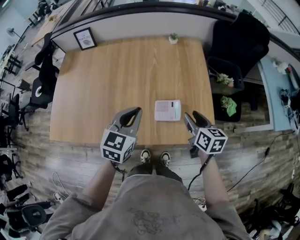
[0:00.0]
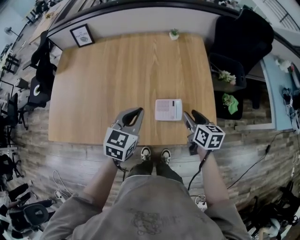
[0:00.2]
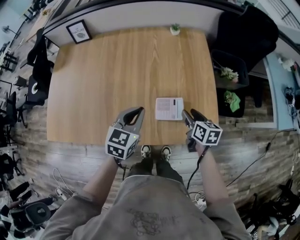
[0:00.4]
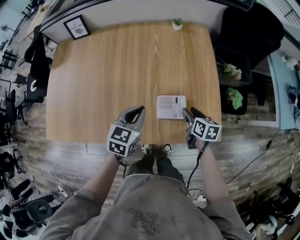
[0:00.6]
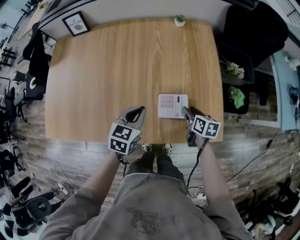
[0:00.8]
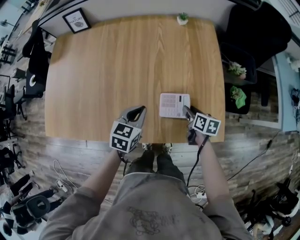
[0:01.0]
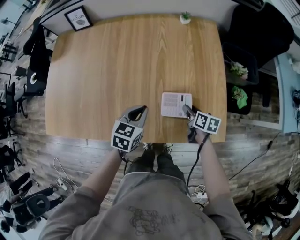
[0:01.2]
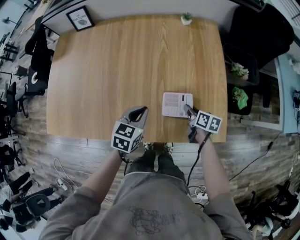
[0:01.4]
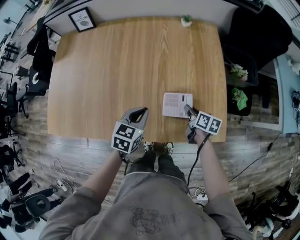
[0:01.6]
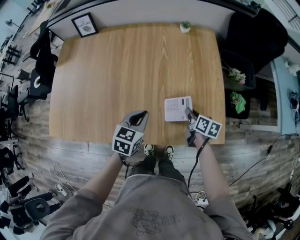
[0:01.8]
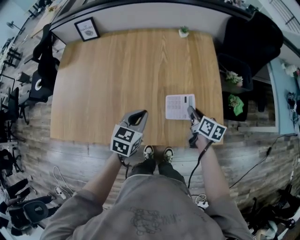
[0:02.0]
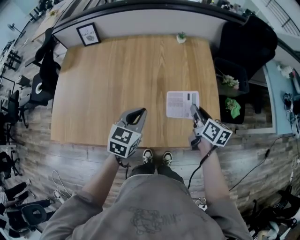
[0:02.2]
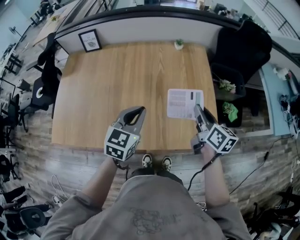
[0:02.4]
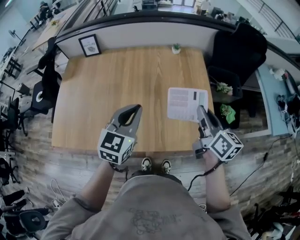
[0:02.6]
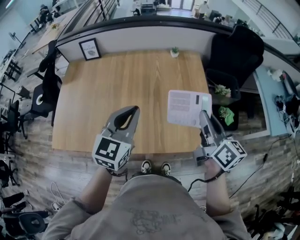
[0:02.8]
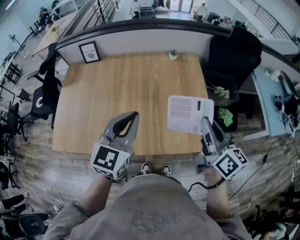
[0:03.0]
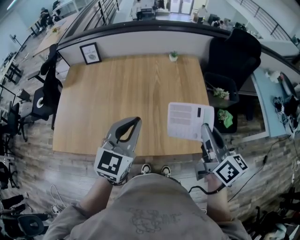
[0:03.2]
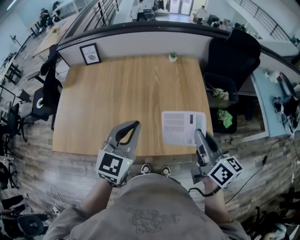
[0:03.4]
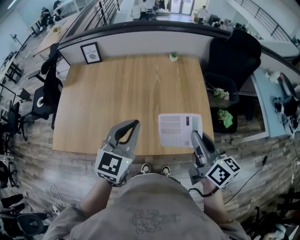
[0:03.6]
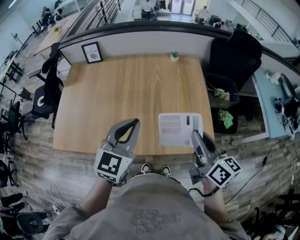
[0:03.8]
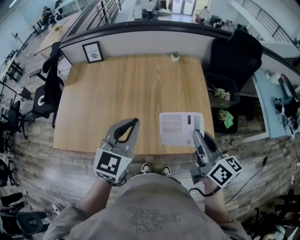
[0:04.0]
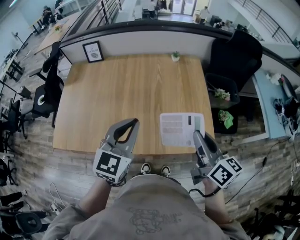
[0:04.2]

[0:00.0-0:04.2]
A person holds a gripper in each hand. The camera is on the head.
0:00.0 to 0:01.4: The grippers both shift downward by about 20 cm. The right gripper swivels roughly 20 degrees, and closes.
0:01.4 to 0:02.8: The grippers both shift upward by roughly 30 cm. The right gripper angles its fingers upward, by approximately 30 degrees; the left gripper rotates about 30 degrees.
0:02.8 to 0:04.2: The right gripper travels backward by some 5 cm.

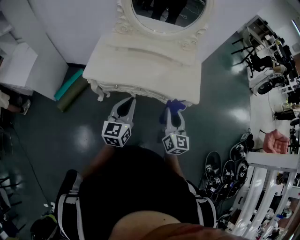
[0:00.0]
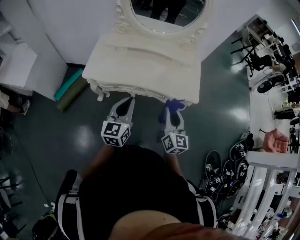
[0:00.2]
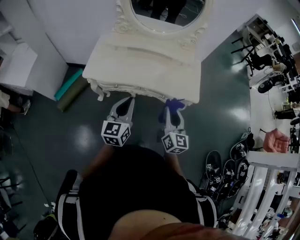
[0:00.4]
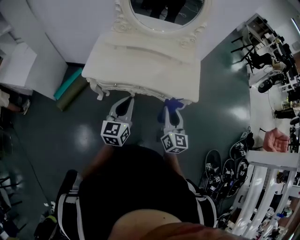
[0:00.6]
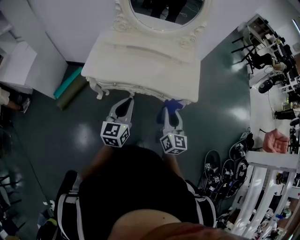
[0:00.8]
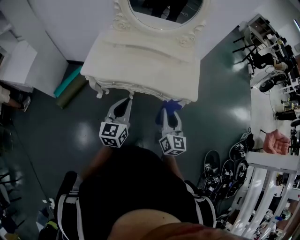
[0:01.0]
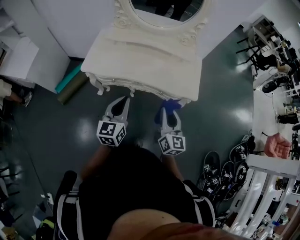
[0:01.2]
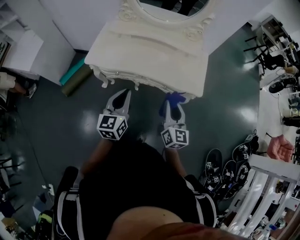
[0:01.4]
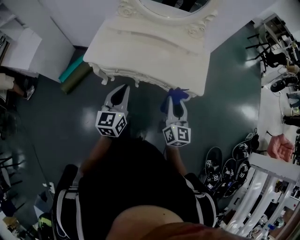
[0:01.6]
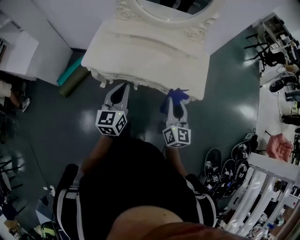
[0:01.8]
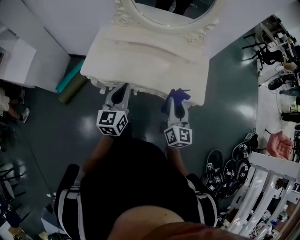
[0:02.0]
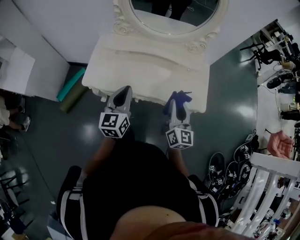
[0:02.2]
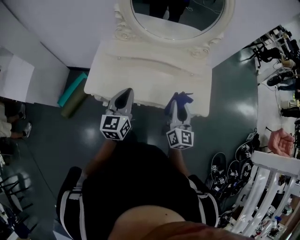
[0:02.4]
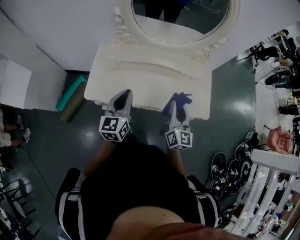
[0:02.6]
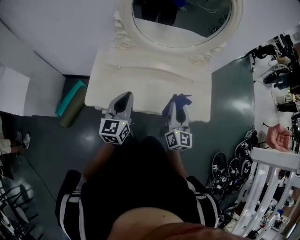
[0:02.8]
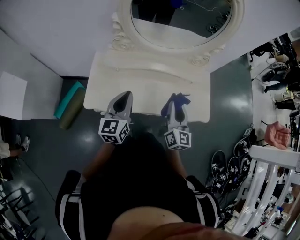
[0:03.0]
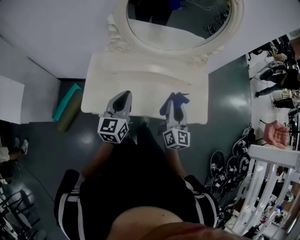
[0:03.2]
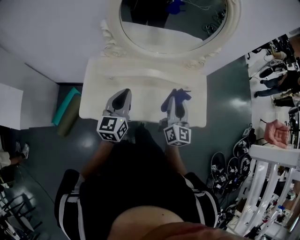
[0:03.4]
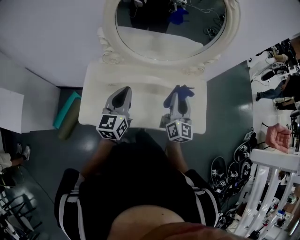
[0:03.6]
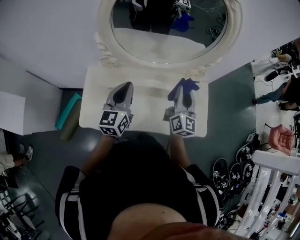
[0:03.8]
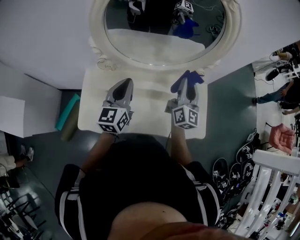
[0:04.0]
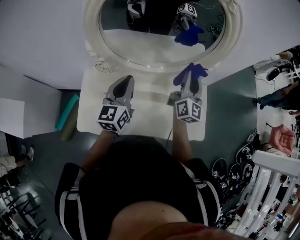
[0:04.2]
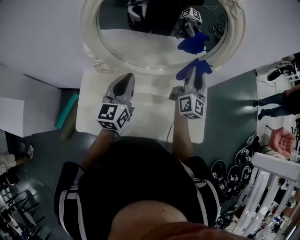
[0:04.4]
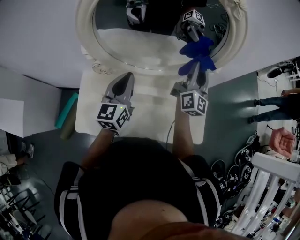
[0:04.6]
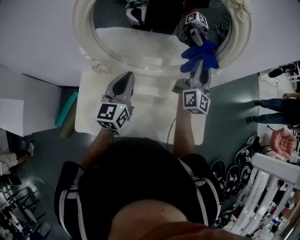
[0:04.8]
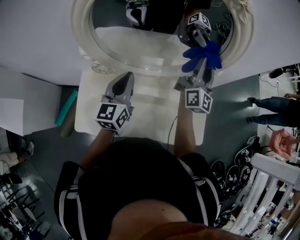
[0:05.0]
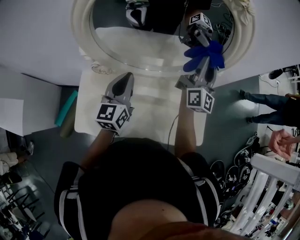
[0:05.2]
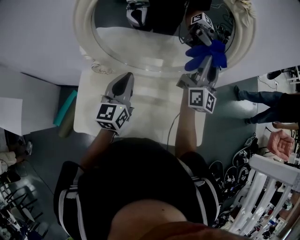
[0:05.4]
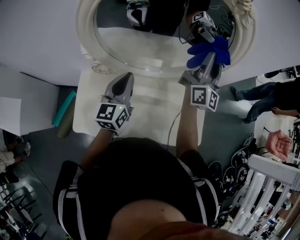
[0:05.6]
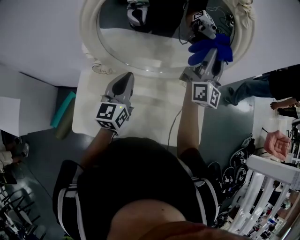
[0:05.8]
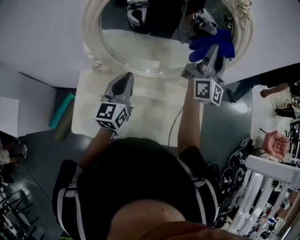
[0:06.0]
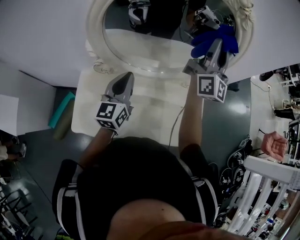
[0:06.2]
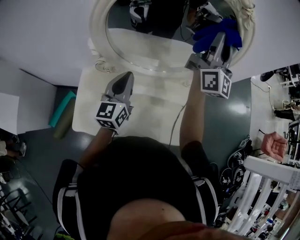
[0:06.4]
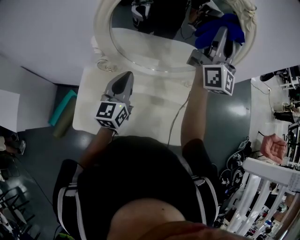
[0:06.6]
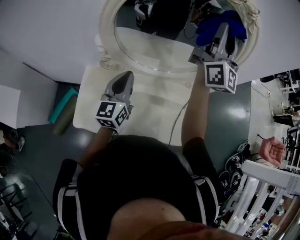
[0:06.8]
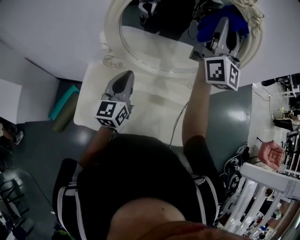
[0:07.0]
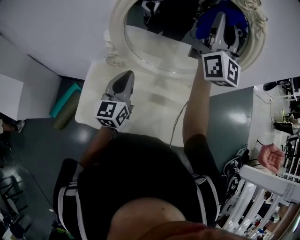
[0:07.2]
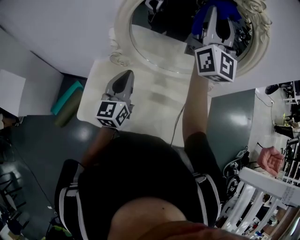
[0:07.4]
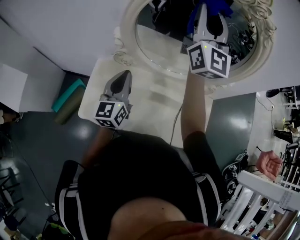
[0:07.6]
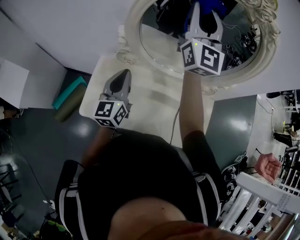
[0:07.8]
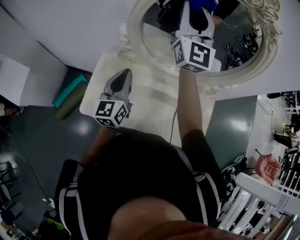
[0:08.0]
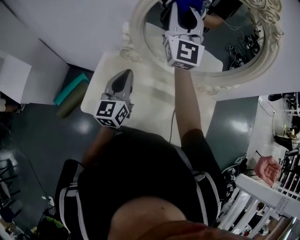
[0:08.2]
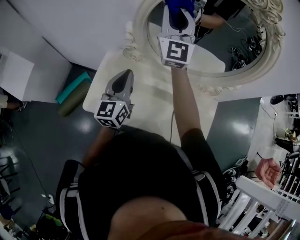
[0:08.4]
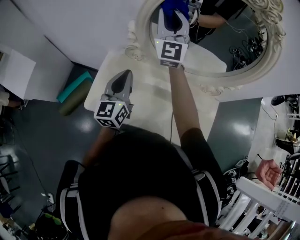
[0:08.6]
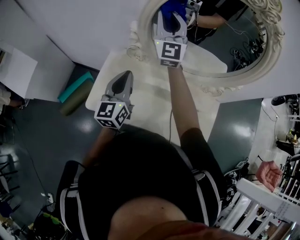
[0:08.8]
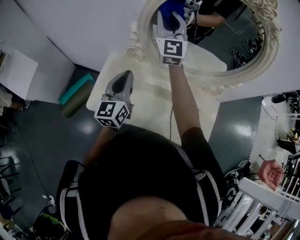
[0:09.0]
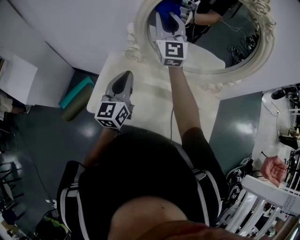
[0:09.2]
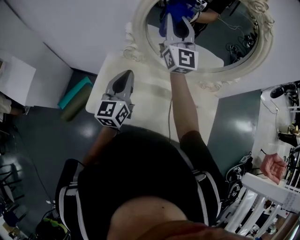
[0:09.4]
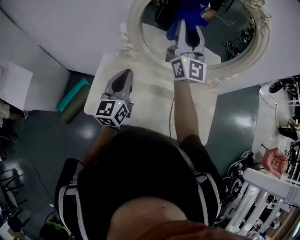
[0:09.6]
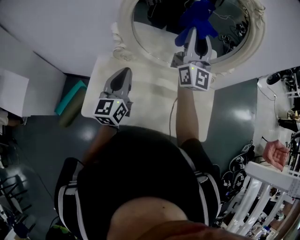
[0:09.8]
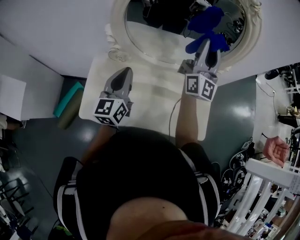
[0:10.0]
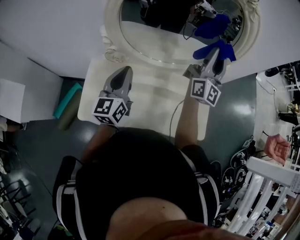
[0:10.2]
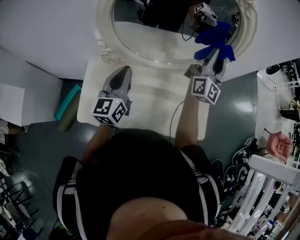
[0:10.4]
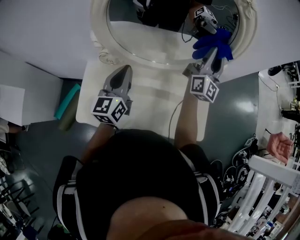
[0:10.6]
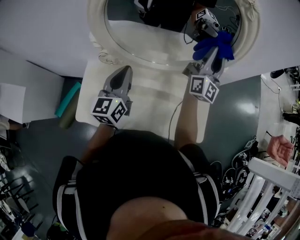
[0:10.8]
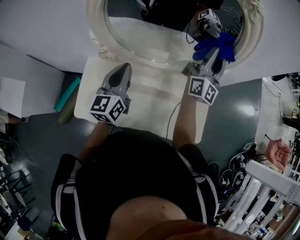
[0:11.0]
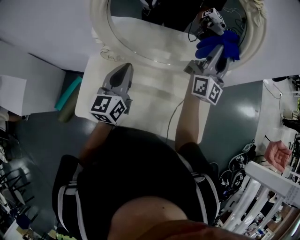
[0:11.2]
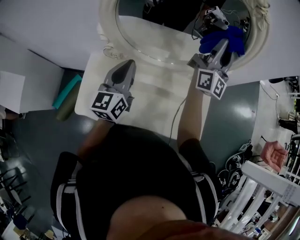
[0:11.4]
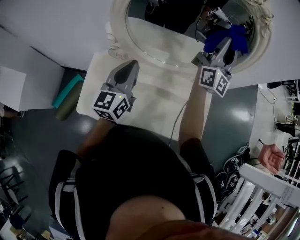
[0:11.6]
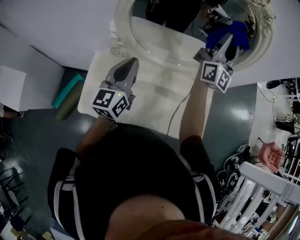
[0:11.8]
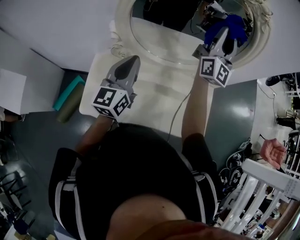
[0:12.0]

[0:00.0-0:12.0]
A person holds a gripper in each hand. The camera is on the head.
0:00.0 to 0:01.6: There are only small adjustments of the grippers.
0:01.6 to 0:03.0: Both grippers move forward and to the left, some 25 cm.
0:03.0 to 0:04.4: The two grippers go some 30 cm forward.
0:04.4 to 0:06.0: The right gripper goes roughly 15 cm upward.
0:06.0 to 0:07.6: The left gripper moves to the left and backward, some 10 cm. Meanwhile the right gripper heads to the left and upward, covering roughly 25 cm, and rotates some 30 degrees.
0:07.6 to 0:09.0: The right gripper moves to the left and downward, about 20 cm. The left gripper changes place by approximately 5 cm.
0:09.0 to 0:10.4: The right gripper changes place by roughly 35 cm, and changes its angle by approximately 40 degrees, while the left gripper moves roughly 10 cm.
0:10.4 to 0:12.0: The left gripper ends up some 5 cm from where it was. The right gripper goes approximately 10 cm upward and to the left.

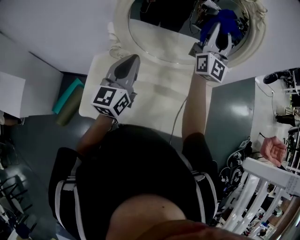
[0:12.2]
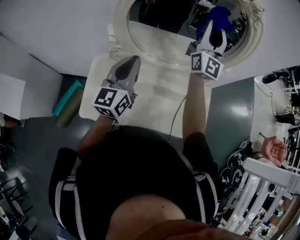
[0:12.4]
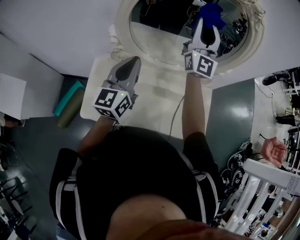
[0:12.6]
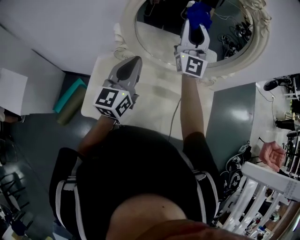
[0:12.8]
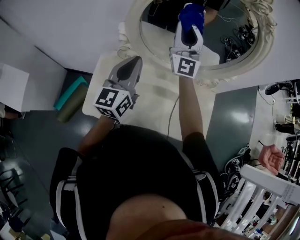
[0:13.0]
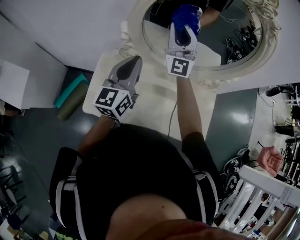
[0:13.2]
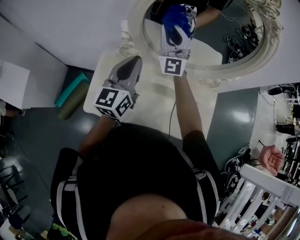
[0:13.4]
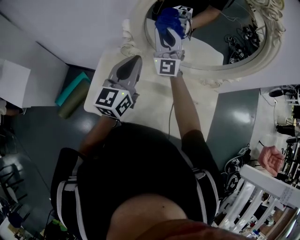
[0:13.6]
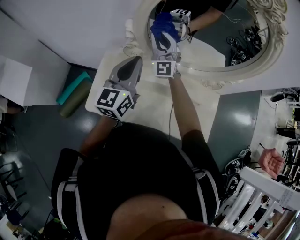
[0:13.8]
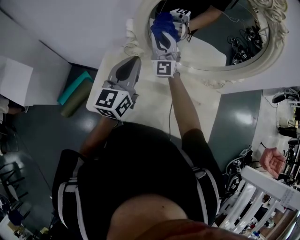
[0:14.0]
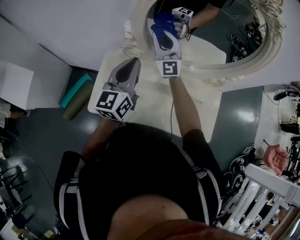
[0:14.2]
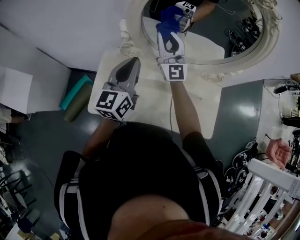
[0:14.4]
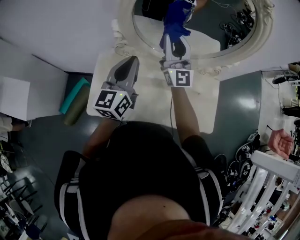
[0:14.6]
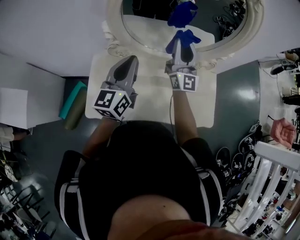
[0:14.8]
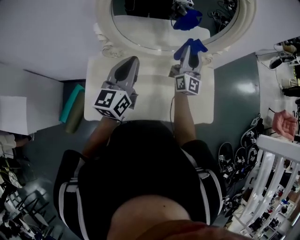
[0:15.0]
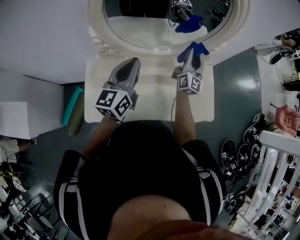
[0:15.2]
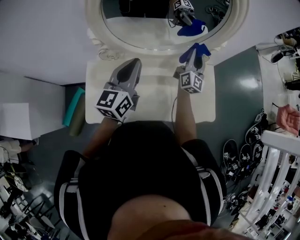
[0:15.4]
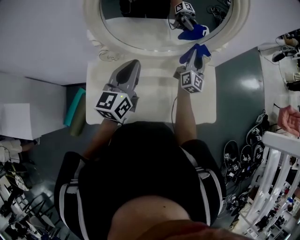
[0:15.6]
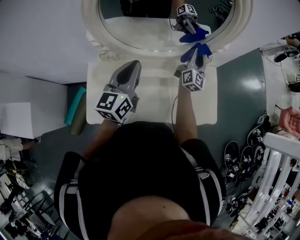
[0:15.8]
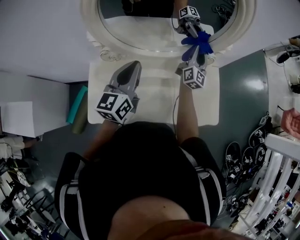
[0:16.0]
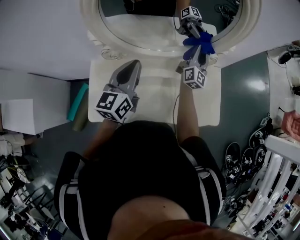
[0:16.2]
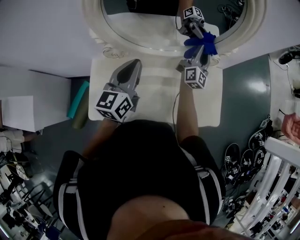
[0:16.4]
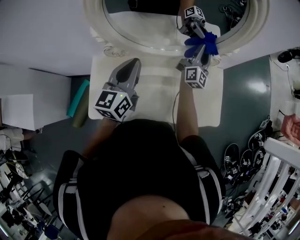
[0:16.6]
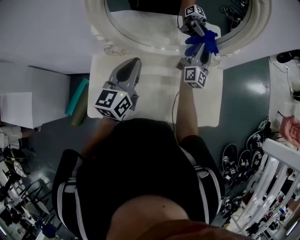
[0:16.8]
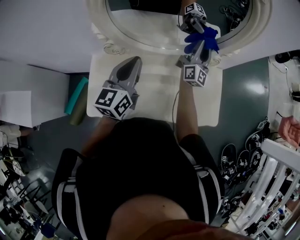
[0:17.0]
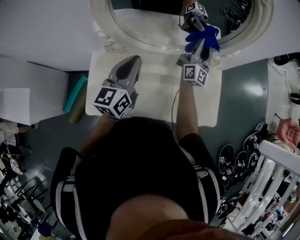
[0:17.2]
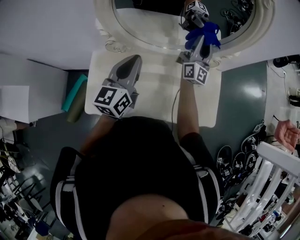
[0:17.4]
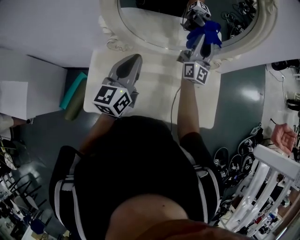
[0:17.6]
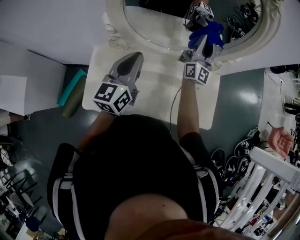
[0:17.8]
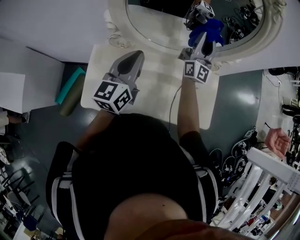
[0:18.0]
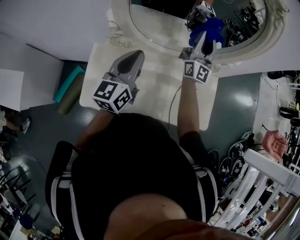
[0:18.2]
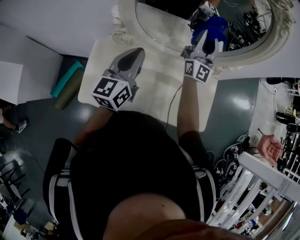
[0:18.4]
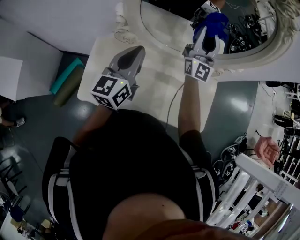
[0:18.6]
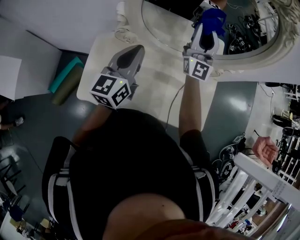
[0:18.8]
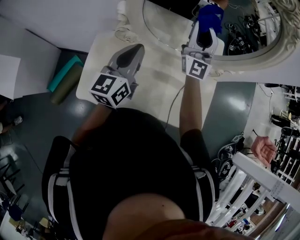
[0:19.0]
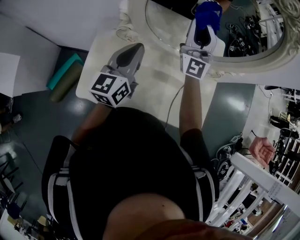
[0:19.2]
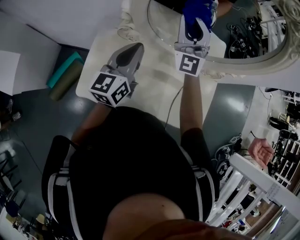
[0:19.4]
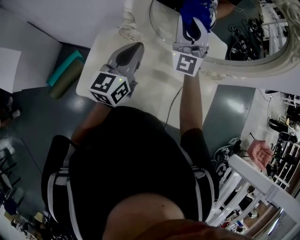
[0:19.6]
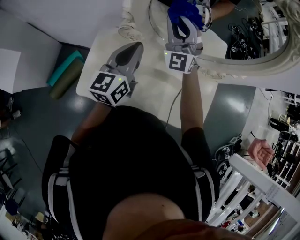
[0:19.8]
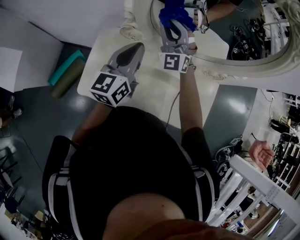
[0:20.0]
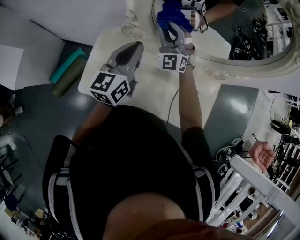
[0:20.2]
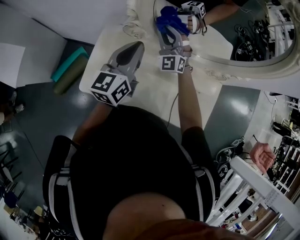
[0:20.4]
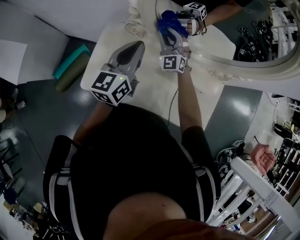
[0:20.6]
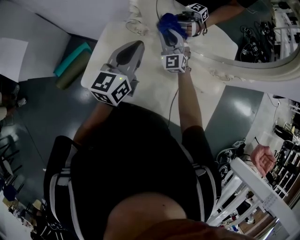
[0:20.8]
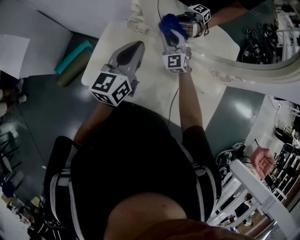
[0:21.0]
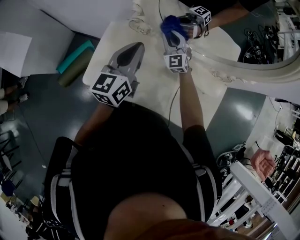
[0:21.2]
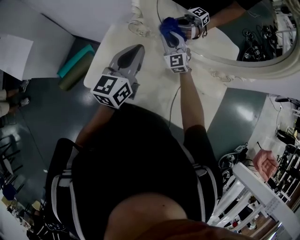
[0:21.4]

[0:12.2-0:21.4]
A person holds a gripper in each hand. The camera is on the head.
0:12.2 to 0:13.8: The right gripper heads to the left and downward, covering approximately 30 cm, and changes its angle by approximately 40 degrees. Meanwhile the left gripper goes roughly 5 cm to the left.
0:13.8 to 0:15.2: The left gripper moves about 10 cm; the right gripper moves approximately 35 cm, and turns by some 60 degrees.
0:15.2 to 0:16.8: The right gripper goes some 5 cm forward.
0:16.8 to 0:18.4: The right gripper shifts approximately 20 cm to the left and upward, and swivels approximately 30 degrees. Meanwhile the left gripper travels to the left by some 5 cm.
0:18.4 to 0:19.8: The right gripper shifts some 20 cm to the left, and turns by some 50 degrees.
0:19.8 to 0:21.4: The right gripper moves downward, about 20 cm, and swivels roughly 30 degrees.
